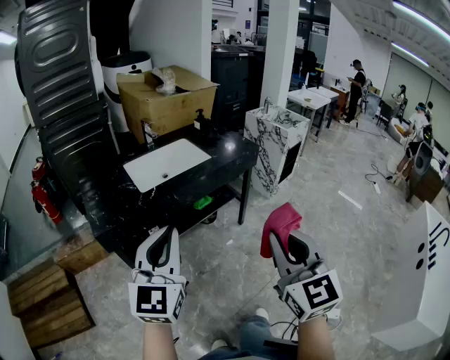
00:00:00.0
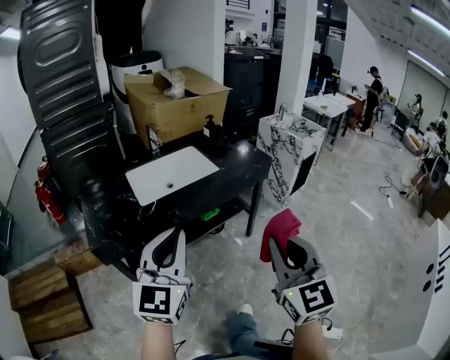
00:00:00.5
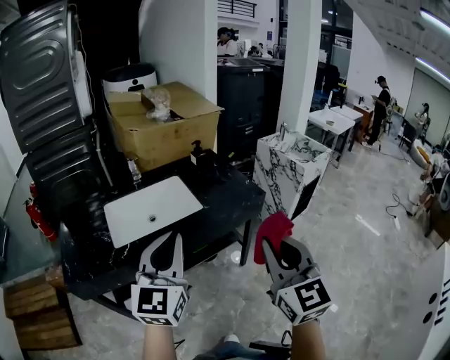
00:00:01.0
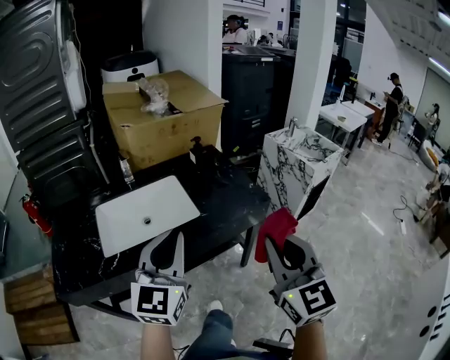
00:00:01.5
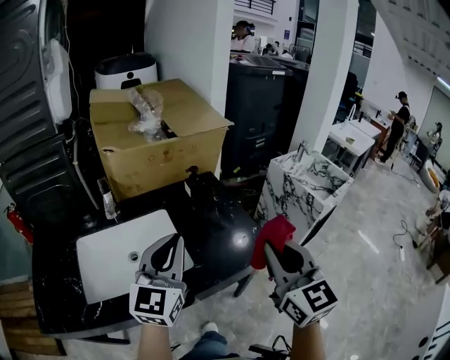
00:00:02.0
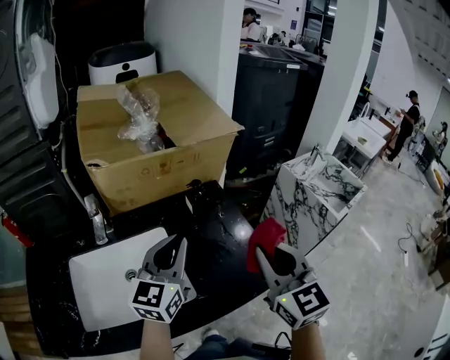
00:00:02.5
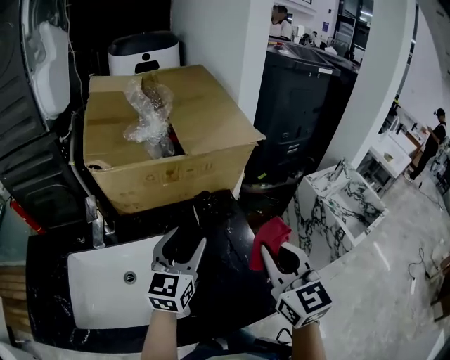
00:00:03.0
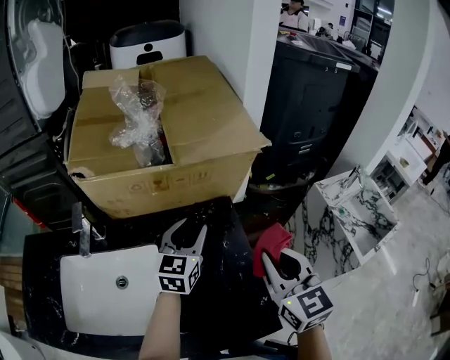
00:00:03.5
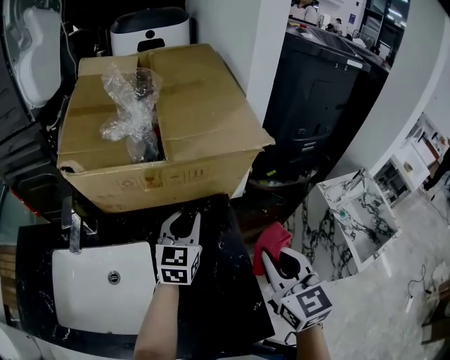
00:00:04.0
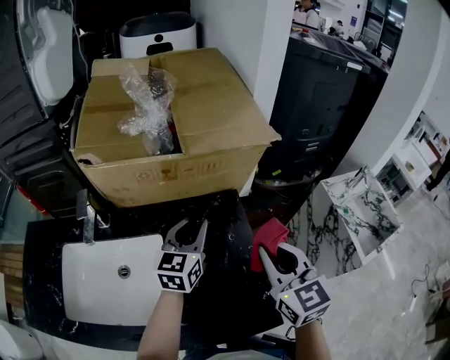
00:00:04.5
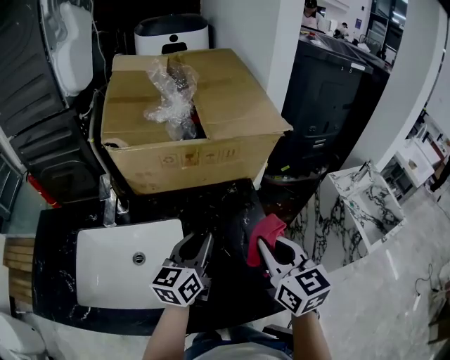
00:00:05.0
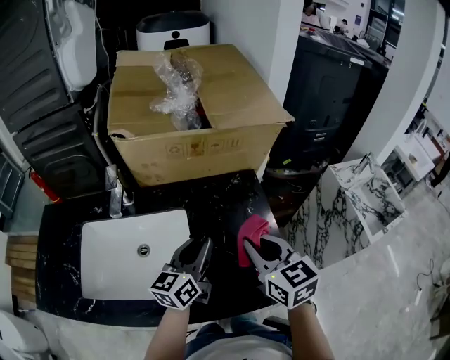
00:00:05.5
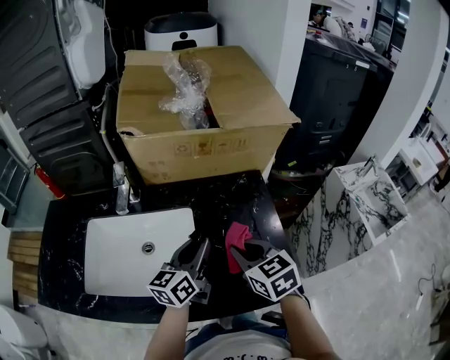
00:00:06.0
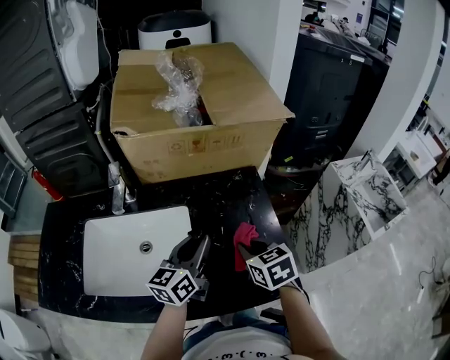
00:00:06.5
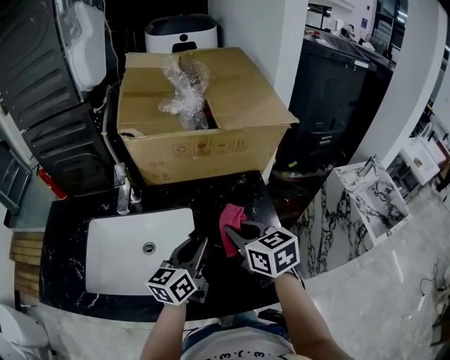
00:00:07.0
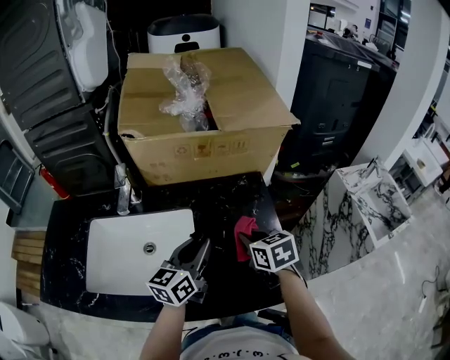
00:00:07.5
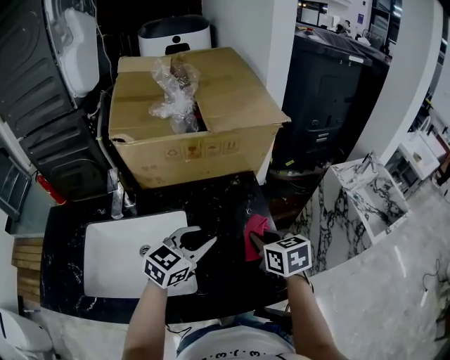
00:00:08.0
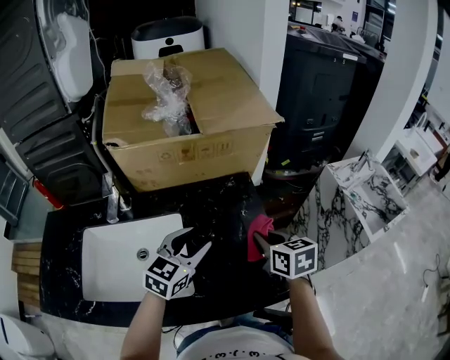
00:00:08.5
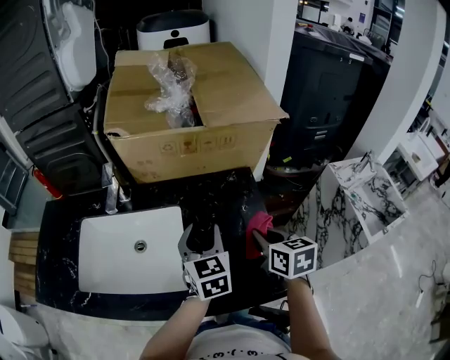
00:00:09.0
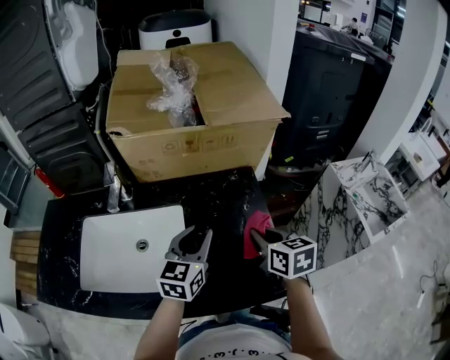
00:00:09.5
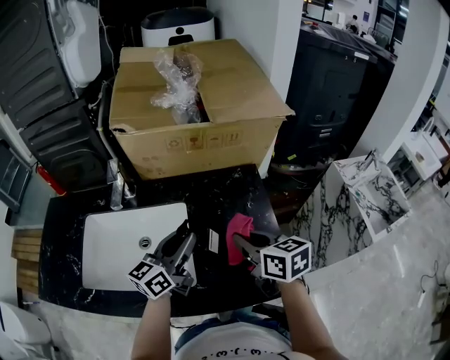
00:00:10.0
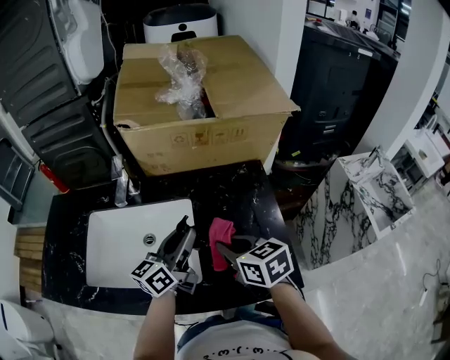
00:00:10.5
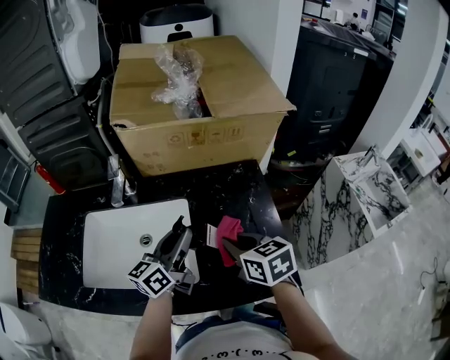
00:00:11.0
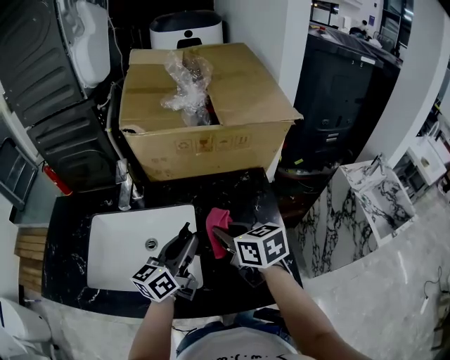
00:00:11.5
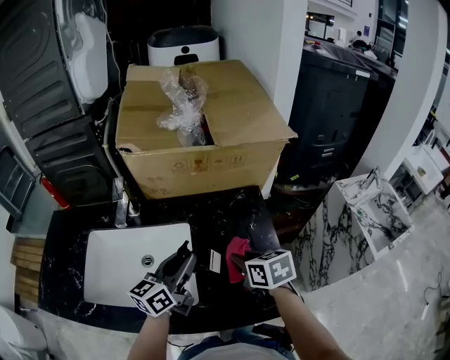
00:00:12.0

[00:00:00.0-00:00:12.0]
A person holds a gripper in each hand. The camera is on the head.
00:00:00.0 to 00:00:02.0: Both grippers are carried forward, approximately 60 cm.
00:00:02.0 to 00:00:04.0: Both grippers travel together forward, roughly 35 cm. The right gripper changes its angle by about 20 degrees. Meanwhile the left gripper turns by roughly 20 degrees, and opens and closes again.
00:00:04.0 to 00:00:06.0: The left gripper travels backward and to the left by roughly 20 cm, and turns by about 30 degrees. Meanwhile the right gripper travels to the left, downward and backward by roughly 20 cm, and turns by roughly 20 degrees.
00:00:06.0 to 00:00:08.0: The two grippers go roughly 5 cm to the right. The left gripper changes its angle by about 40 degrees.
00:00:08.0 to 00:00:10.0: The left gripper moves some 5 cm, rotates roughly 40 degrees, and opens, then closes once more; the right gripper changes place by about 5 cm.
00:00:10.0 to 00:00:12.0: The right gripper moves downward, roughly 5 cm.

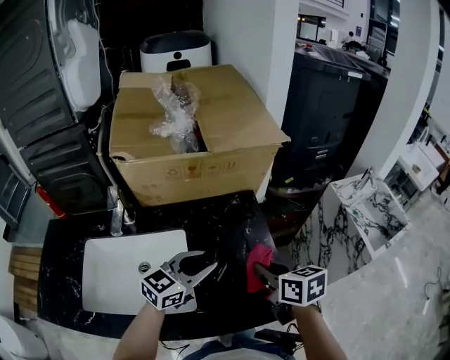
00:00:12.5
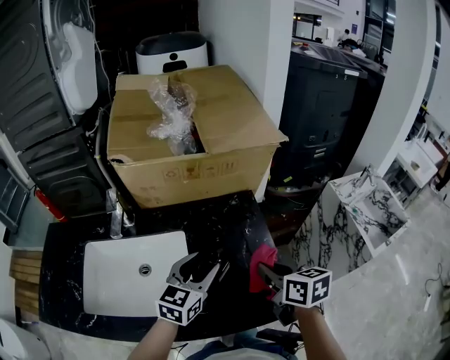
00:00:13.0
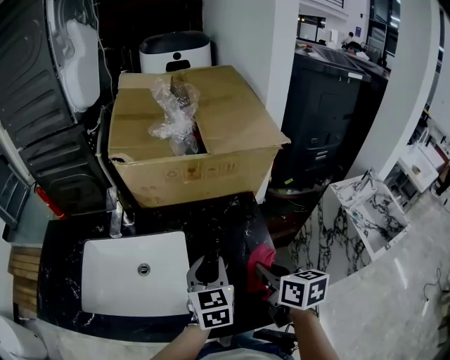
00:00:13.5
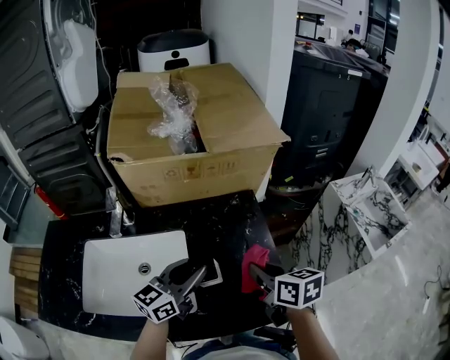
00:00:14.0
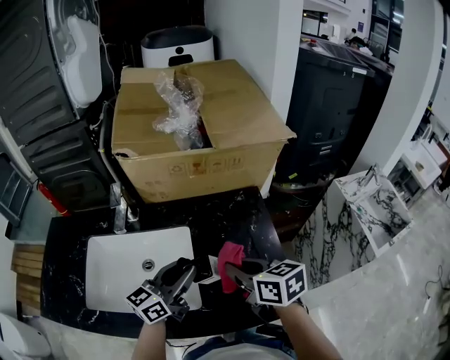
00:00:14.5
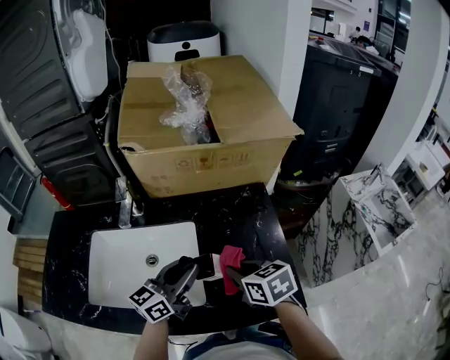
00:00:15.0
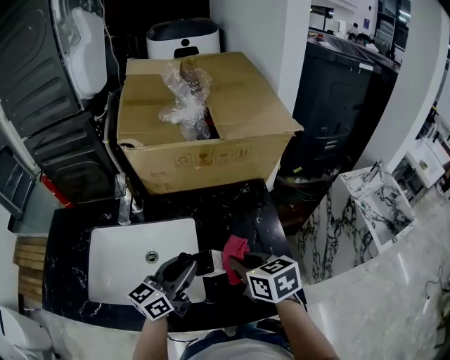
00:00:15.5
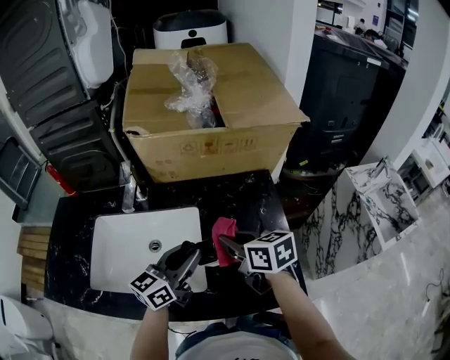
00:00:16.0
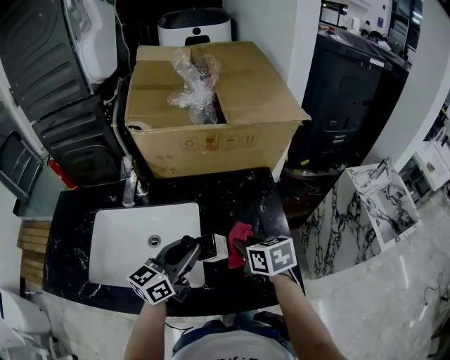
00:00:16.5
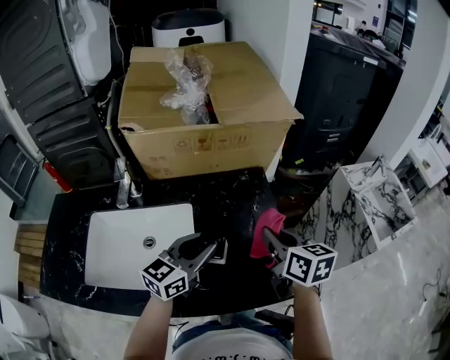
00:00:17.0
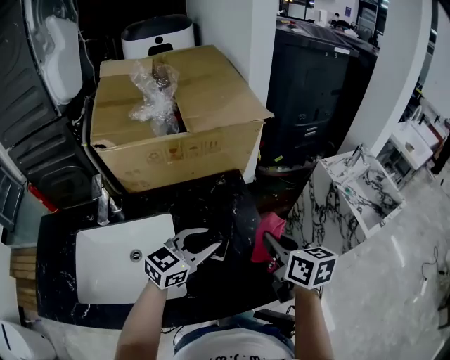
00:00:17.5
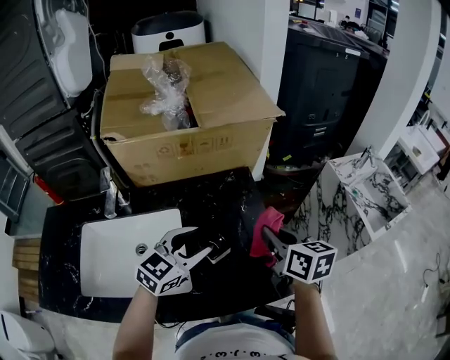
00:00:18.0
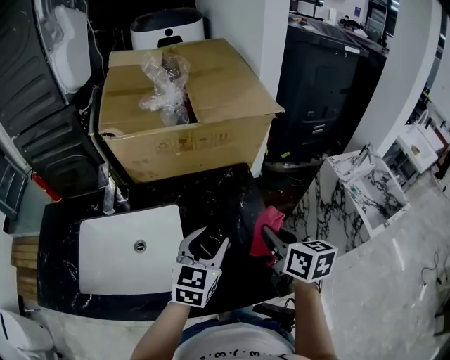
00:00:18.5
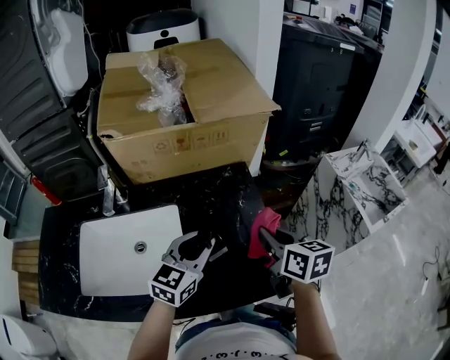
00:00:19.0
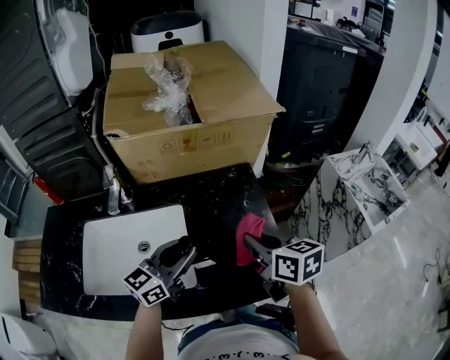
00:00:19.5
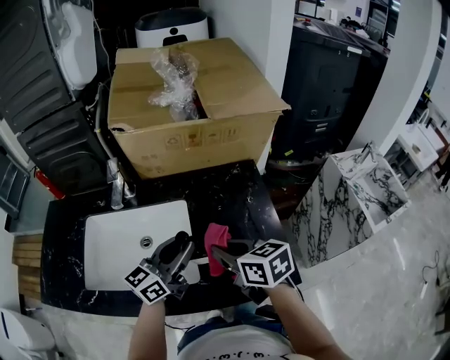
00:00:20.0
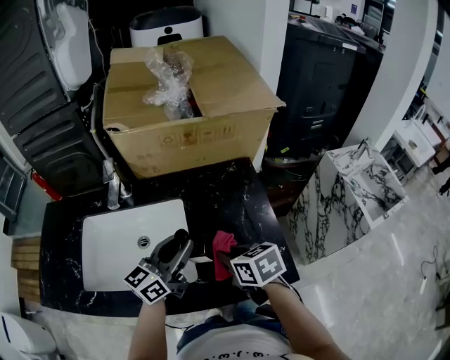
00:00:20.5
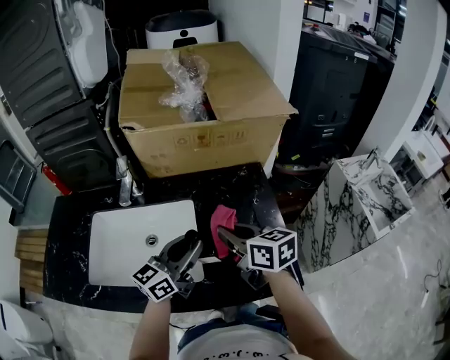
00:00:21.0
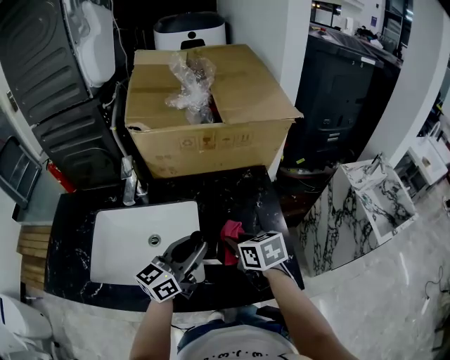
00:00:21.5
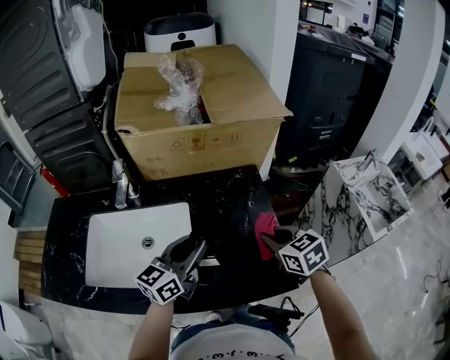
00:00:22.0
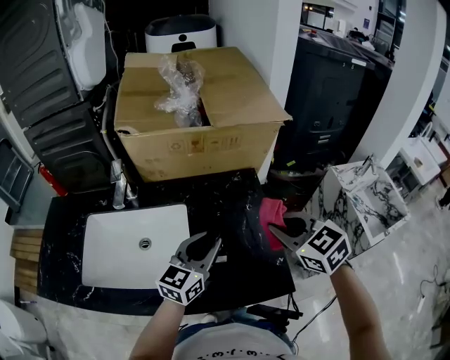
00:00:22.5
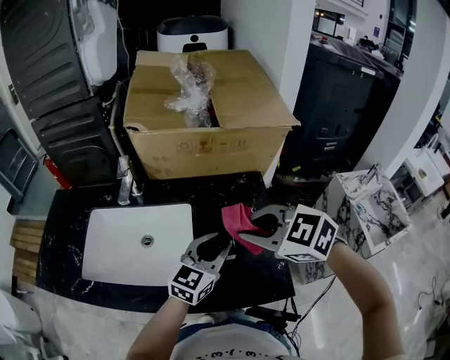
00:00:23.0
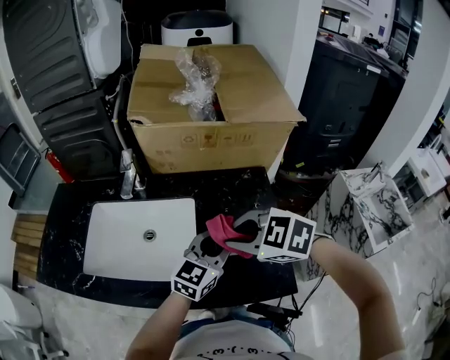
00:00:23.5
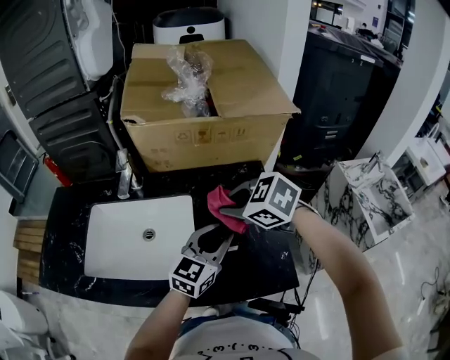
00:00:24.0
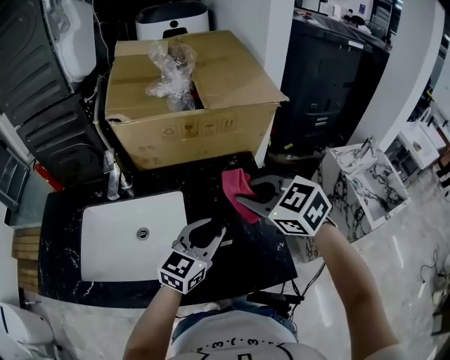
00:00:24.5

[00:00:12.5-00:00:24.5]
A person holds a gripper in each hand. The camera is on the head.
00:00:12.5 to 00:00:14.5: Both grippers travel together to the left, about 10 cm. The left gripper changes its angle by roughly 30 degrees, and opens and closes again.
00:00:14.5 to 00:00:16.5: The right gripper goes approximately 5 cm downward.
00:00:16.5 to 00:00:18.5: The left gripper is displaced to the right by roughly 10 cm, turns by roughly 30 degrees, and opens its fingers, while the right gripper goes about 15 cm to the right and upward, and rotates about 30 degrees.
00:00:18.5 to 00:00:20.5: The left gripper travels to the left by approximately 10 cm, swivels roughly 40 degrees, and closes; the right gripper travels to the left and downward by roughly 15 cm, and turns by about 30 degrees.
00:00:20.5 to 00:00:22.5: The left gripper shifts approximately 10 cm to the right, while the right gripper moves to the right and upward, about 20 cm, and swivels about 40 degrees.
00:00:22.5 to 00:00:24.5: The right gripper shifts approximately 5 cm to the left.

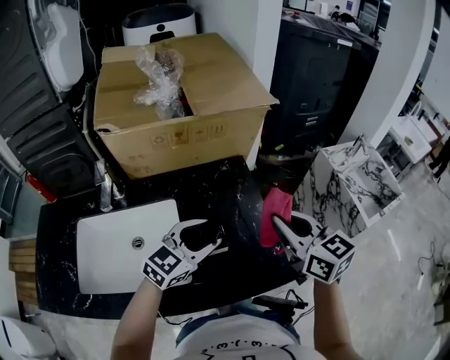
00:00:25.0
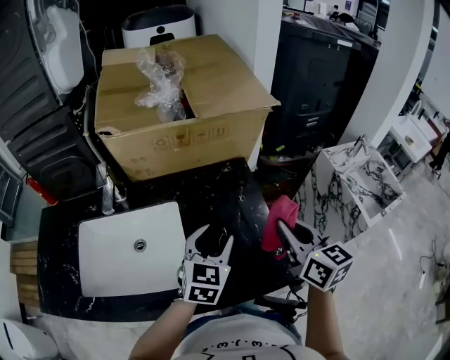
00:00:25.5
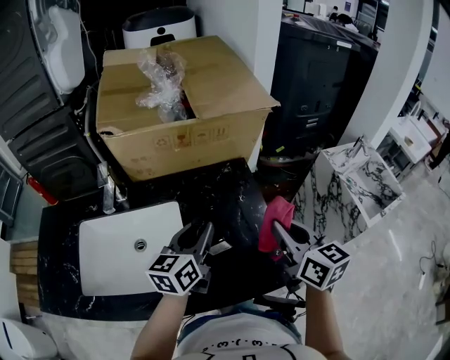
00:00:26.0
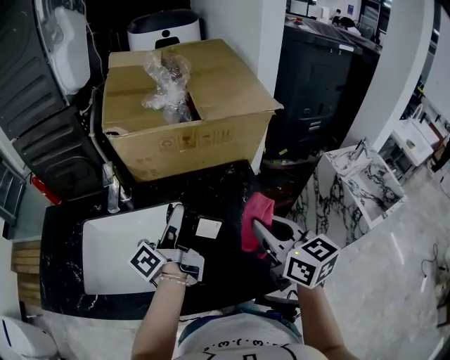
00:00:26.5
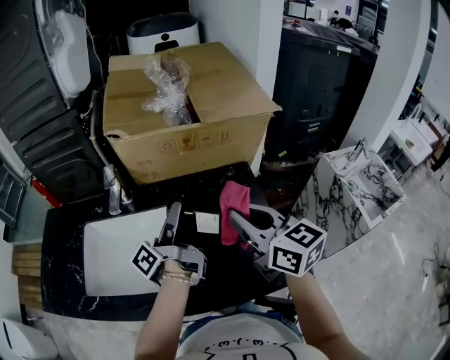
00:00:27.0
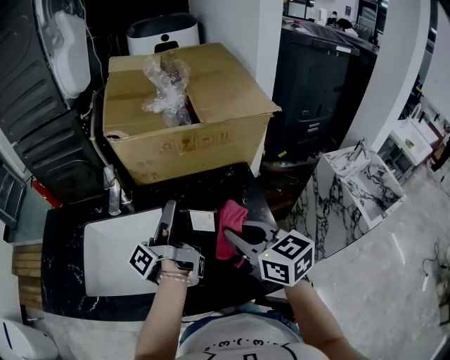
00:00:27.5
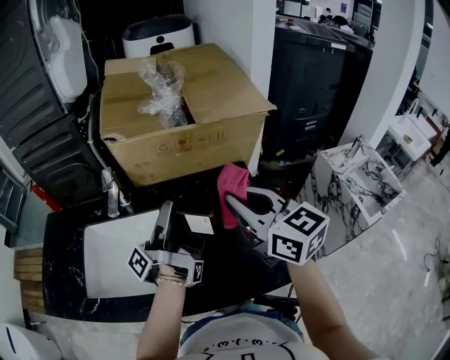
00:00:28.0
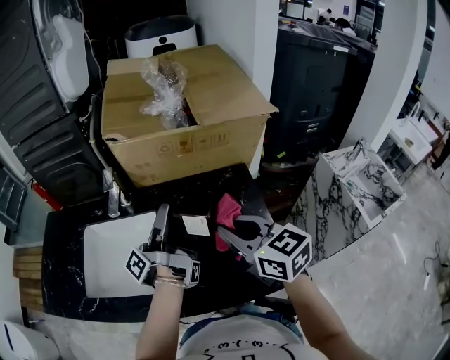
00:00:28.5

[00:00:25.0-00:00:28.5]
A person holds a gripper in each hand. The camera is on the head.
00:00:25.0 to 00:00:27.0: The right gripper moves roughly 10 cm, while the left gripper ends up some 15 cm from where it was, and tips its fingers upward by roughly 40 degrees.
00:00:27.0 to 00:00:28.5: The right gripper swings up and down, some 10 cm each way, with 2 reversals.
